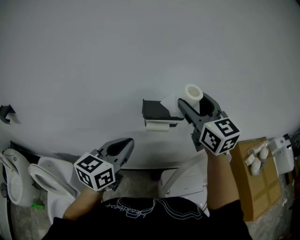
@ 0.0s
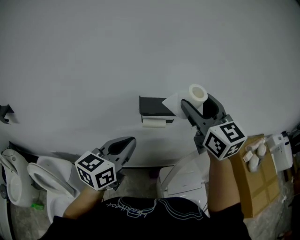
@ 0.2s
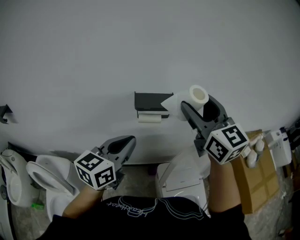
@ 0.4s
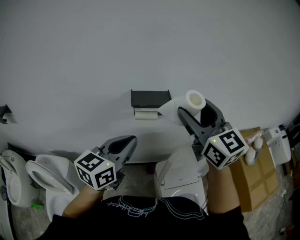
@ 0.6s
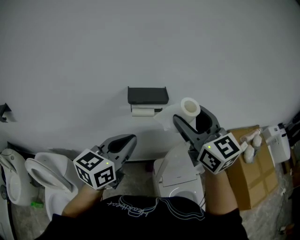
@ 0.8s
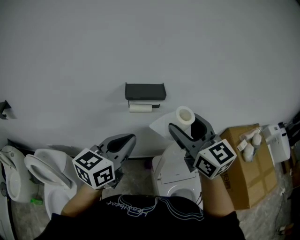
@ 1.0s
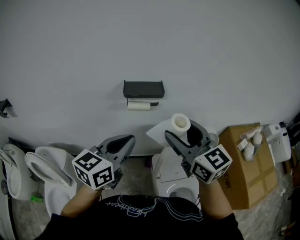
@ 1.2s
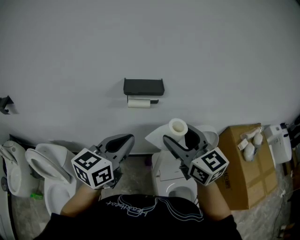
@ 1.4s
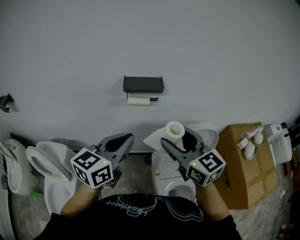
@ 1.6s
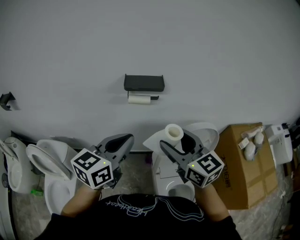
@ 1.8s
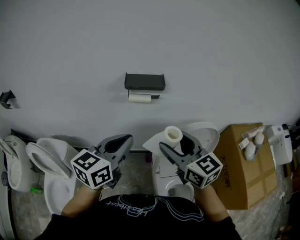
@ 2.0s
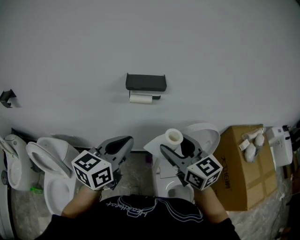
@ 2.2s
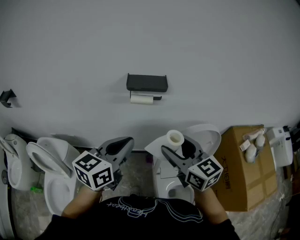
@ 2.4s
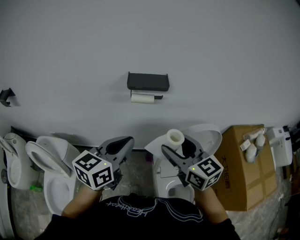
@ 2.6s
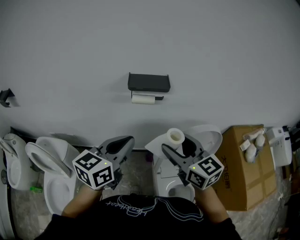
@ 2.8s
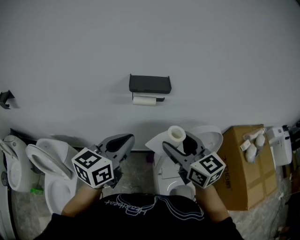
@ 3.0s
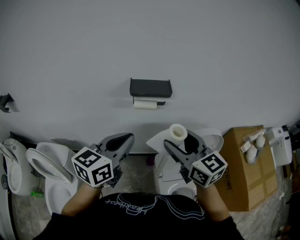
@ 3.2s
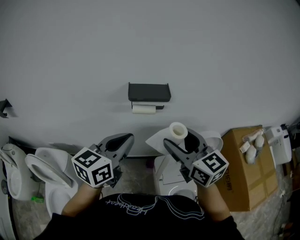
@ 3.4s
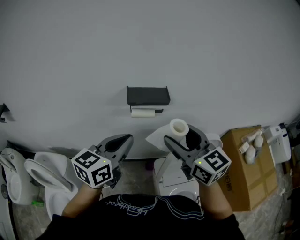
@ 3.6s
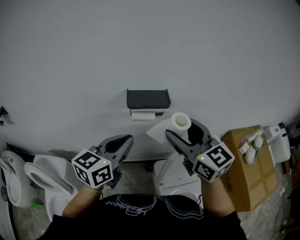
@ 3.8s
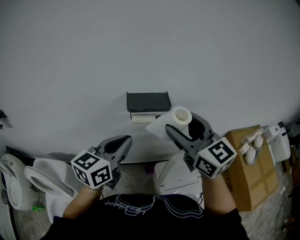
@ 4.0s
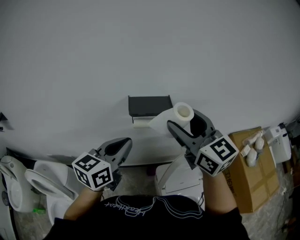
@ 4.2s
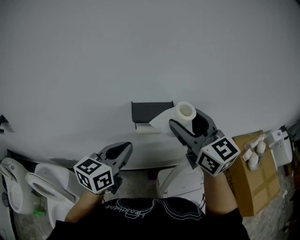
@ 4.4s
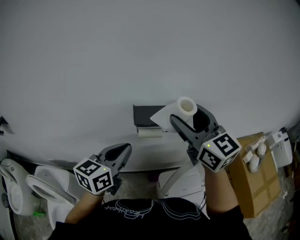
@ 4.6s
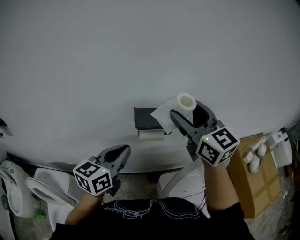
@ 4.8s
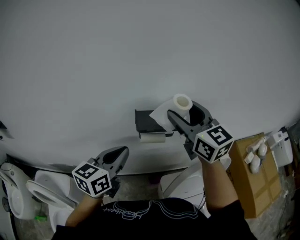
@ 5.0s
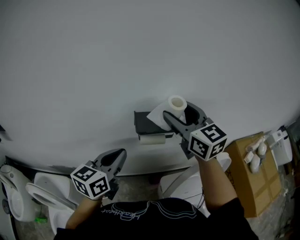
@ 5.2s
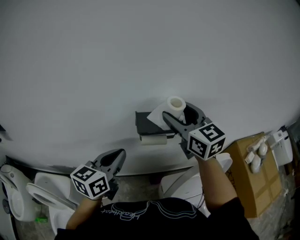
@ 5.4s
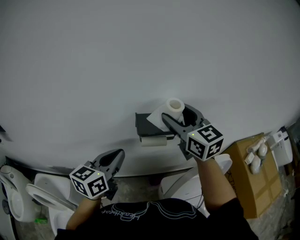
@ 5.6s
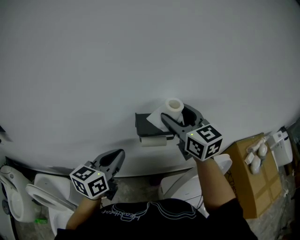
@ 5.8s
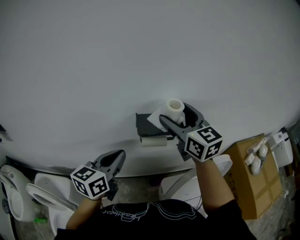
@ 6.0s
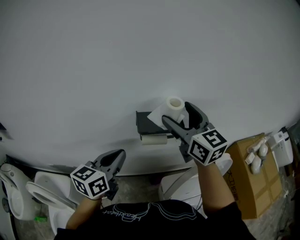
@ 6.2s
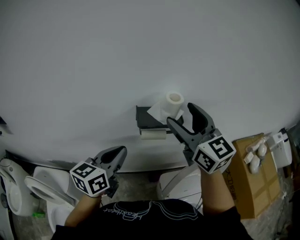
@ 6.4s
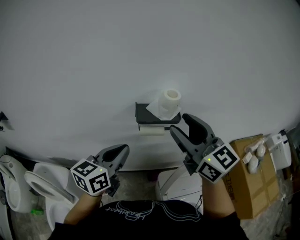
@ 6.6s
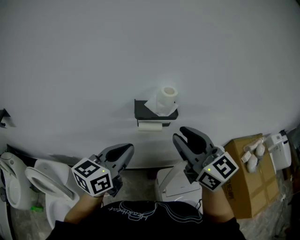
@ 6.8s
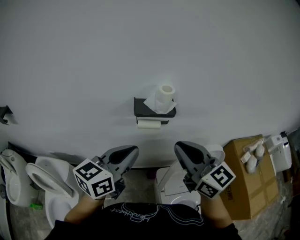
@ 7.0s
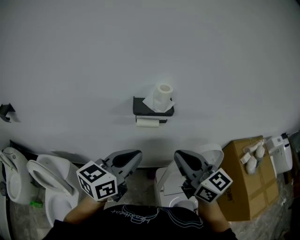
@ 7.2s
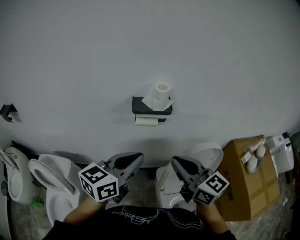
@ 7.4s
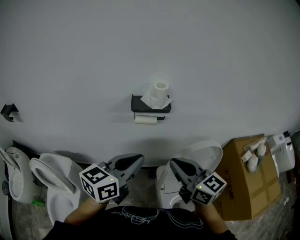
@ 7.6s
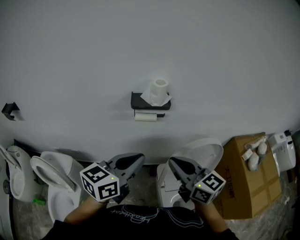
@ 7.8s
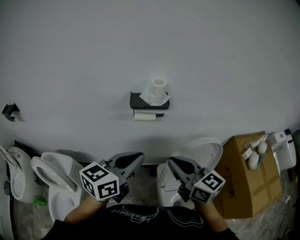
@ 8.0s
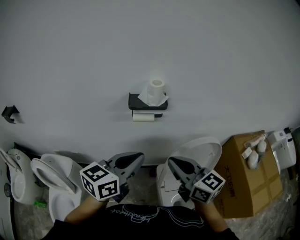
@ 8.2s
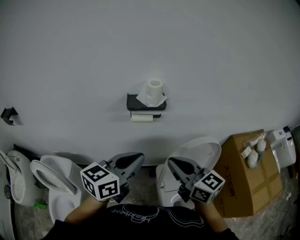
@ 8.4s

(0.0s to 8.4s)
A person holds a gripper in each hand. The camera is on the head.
0.0s - 1.4s: The right gripper is displaced backward and downward by about 20 cm. The left gripper heads to the right and backward, covering about 10 cm.
1.4s - 2.8s: The right gripper travels downward by approximately 5 cm.
2.8s - 4.2s: The right gripper goes some 15 cm forward and upward; the left gripper travels forward by about 10 cm.
4.2s - 5.6s: The right gripper travels forward by roughly 10 cm, while the left gripper goes some 5 cm to the left.
5.6s - 7.0s: The left gripper travels backward, to the right and upward by about 15 cm, while the right gripper heads backward, covering about 20 cm, and closes its fingers.
7.0s - 8.4s: The left gripper travels to the right and backward by about 10 cm, while the right gripper is displaced downward and backward by roughly 10 cm.

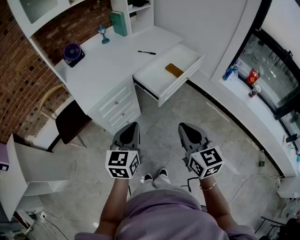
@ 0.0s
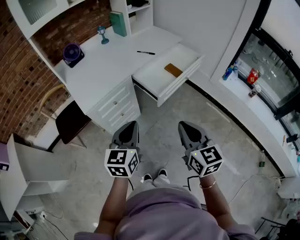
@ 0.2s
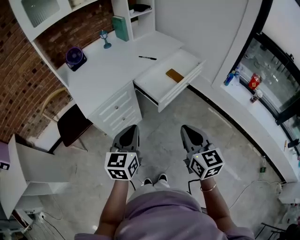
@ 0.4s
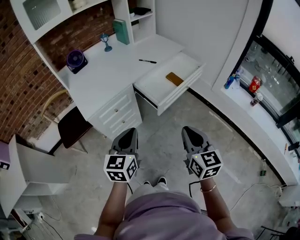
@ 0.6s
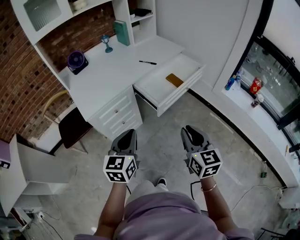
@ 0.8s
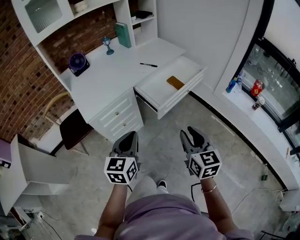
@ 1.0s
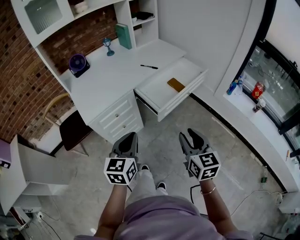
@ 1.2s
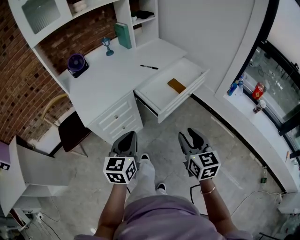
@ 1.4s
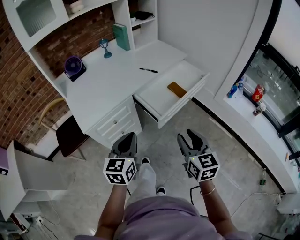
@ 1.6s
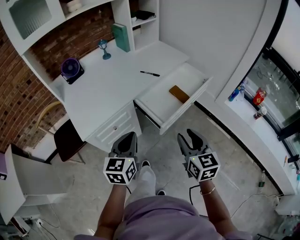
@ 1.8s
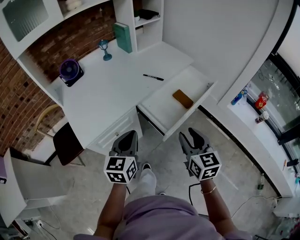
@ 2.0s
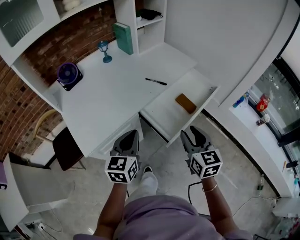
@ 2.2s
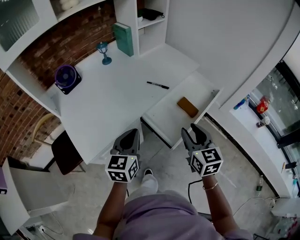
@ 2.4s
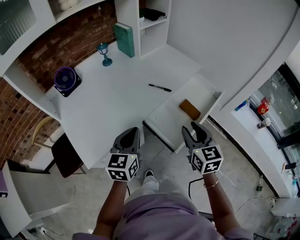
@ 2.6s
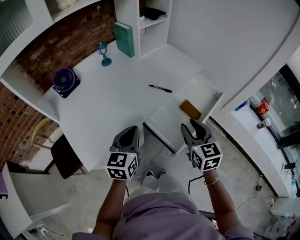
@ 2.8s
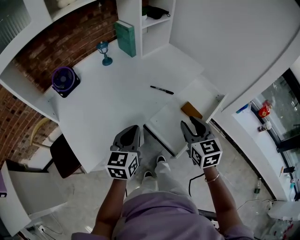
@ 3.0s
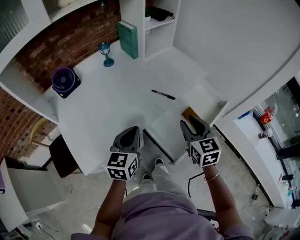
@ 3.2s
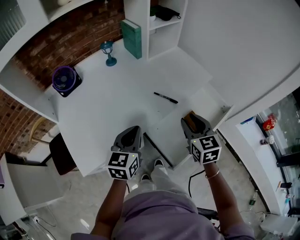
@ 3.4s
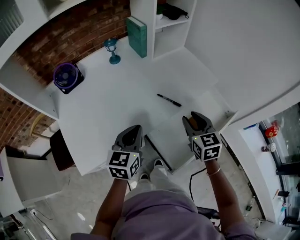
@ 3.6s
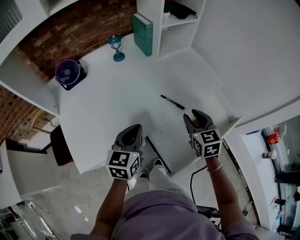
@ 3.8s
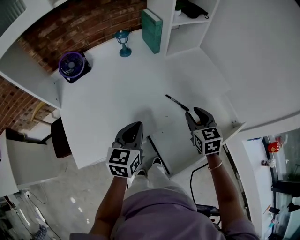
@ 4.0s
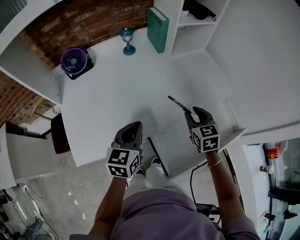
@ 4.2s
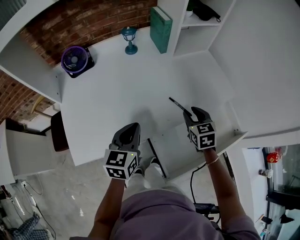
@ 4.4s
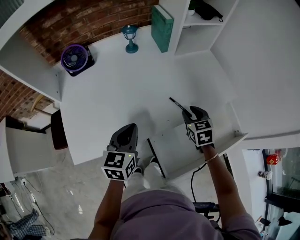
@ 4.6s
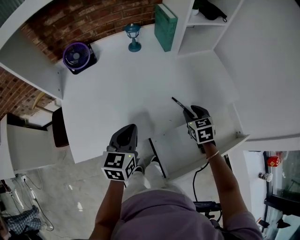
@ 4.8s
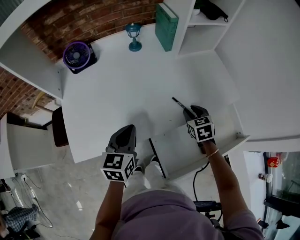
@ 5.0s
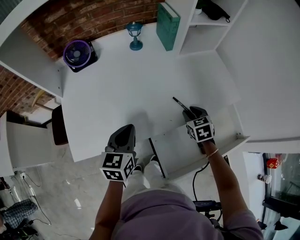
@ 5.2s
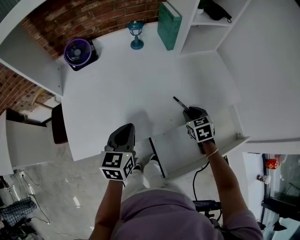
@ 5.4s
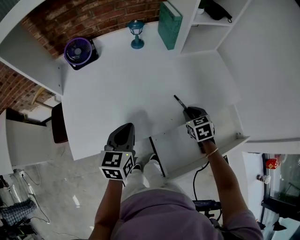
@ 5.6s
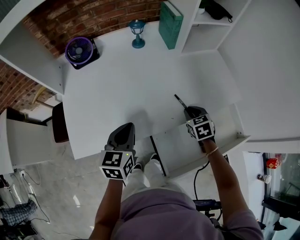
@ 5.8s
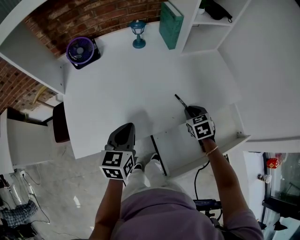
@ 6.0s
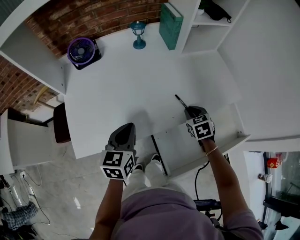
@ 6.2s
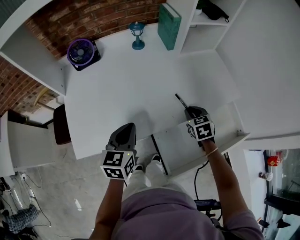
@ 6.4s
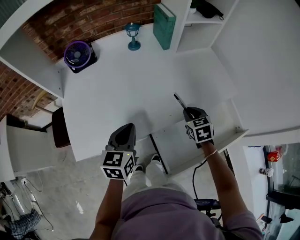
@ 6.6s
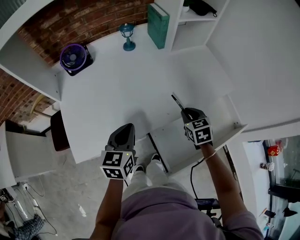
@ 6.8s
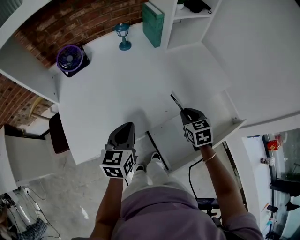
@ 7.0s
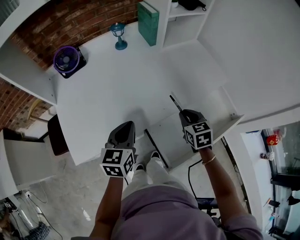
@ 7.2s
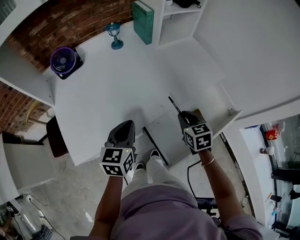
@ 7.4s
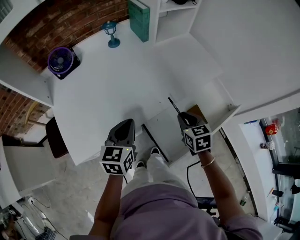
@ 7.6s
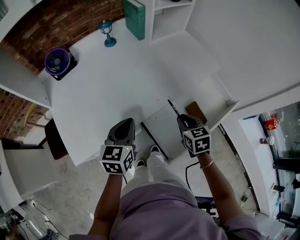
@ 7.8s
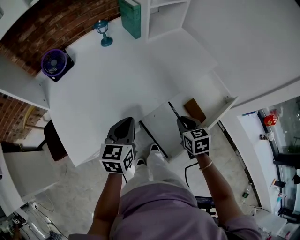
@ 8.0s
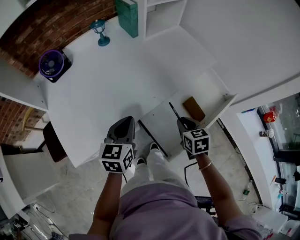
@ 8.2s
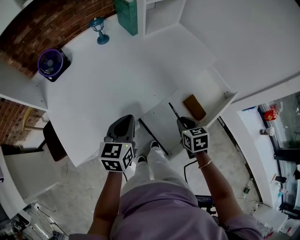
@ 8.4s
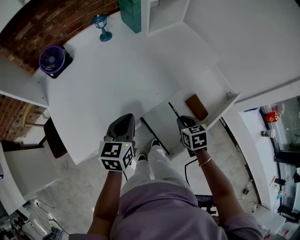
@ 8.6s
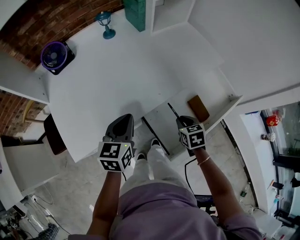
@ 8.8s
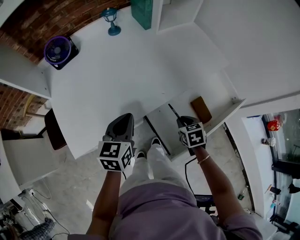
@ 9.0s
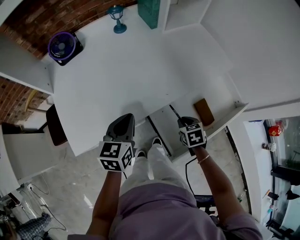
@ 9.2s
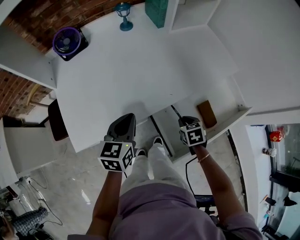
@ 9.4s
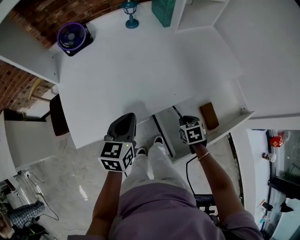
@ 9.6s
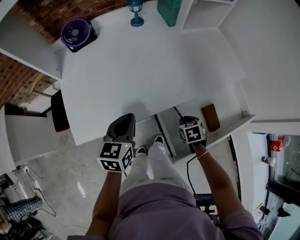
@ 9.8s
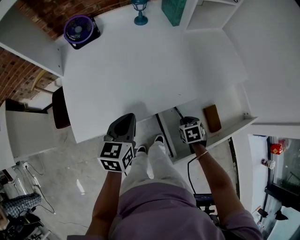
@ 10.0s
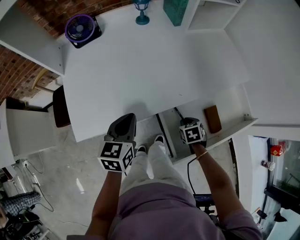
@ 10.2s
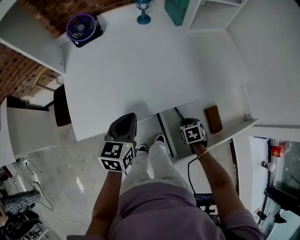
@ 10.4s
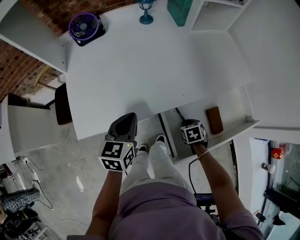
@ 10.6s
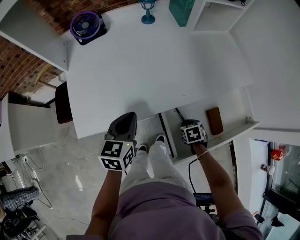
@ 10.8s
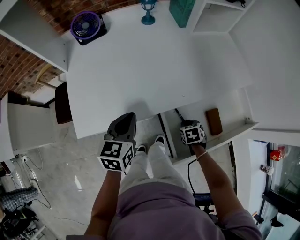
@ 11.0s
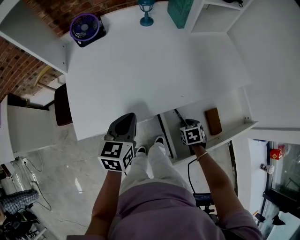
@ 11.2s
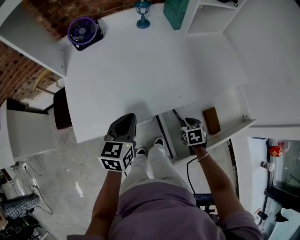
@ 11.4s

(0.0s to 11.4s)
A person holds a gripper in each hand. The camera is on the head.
0.0s - 1.4s: The left gripper moves roughly 5 cm, while the right gripper heads forward and to the right, covering approximately 10 cm, and opens up.
1.4s - 2.8s: Both grippers move forward, about 30 cm.
2.8s - 4.2s: The left gripper heads forward, covering roughly 10 cm. Meanwhile the right gripper is displaced forward by some 25 cm, and swivels about 20 degrees.
4.2s - 5.6s: The right gripper goes some 10 cm downward.
5.6s - 7.2s: The right gripper moves backward and upward, about 10 cm.
7.2s - 8.6s: The right gripper travels backward and downward by approximately 10 cm.
8.6s - 10.0s: The right gripper heads downward, covering some 10 cm, and changes its angle by some 20 degrees. The left gripper heads to the left, covering approximately 5 cm.
10.0s - 11.4s: The grippers move only a little.

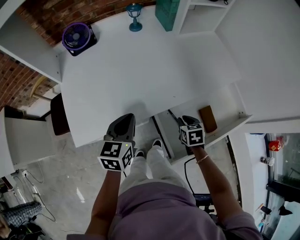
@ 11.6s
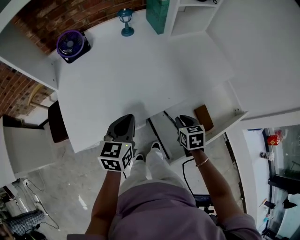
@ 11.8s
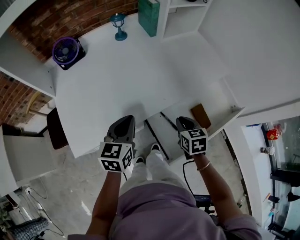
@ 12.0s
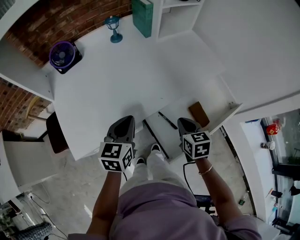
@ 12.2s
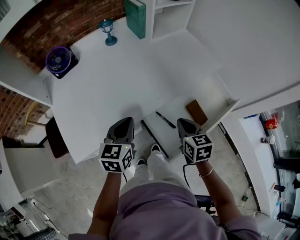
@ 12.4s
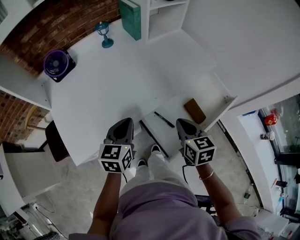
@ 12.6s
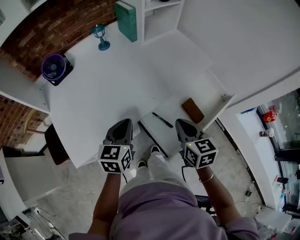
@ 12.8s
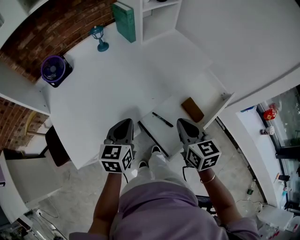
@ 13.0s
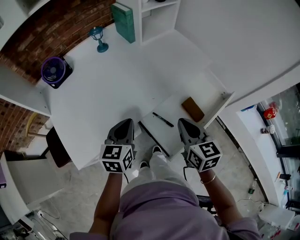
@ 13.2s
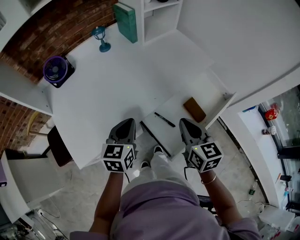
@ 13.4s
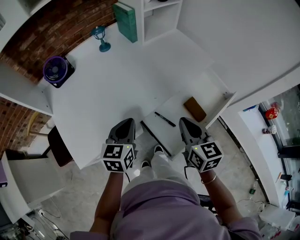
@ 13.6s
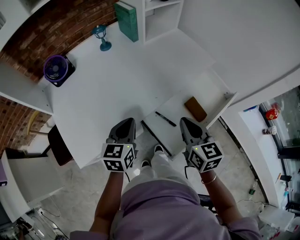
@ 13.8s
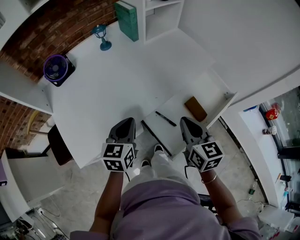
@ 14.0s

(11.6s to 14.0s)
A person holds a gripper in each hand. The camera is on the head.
11.6s - 12.8s: The left gripper moves to the right, approximately 5 cm; the right gripper is displaced upward by roughly 15 cm, and rotates about 30 degrees.
12.8s - 14.0s: The grippers move only a little.

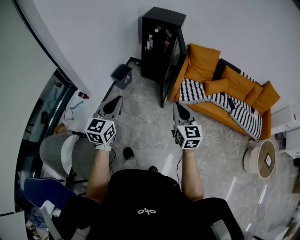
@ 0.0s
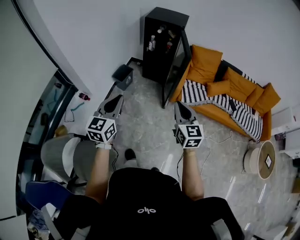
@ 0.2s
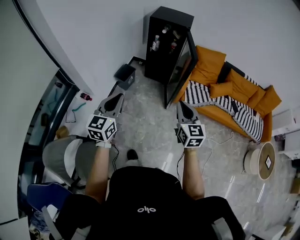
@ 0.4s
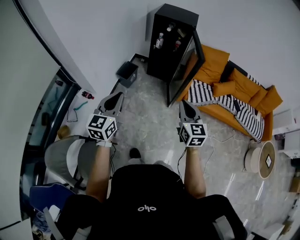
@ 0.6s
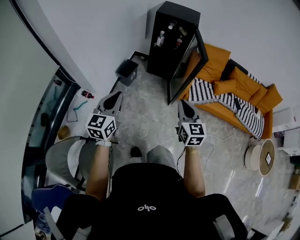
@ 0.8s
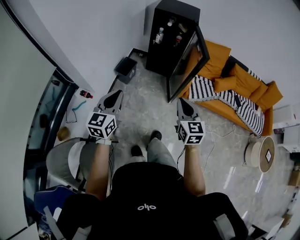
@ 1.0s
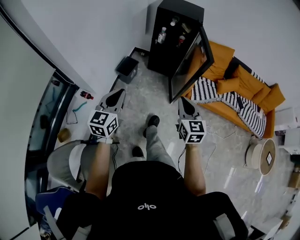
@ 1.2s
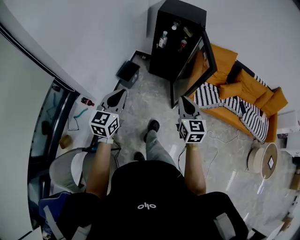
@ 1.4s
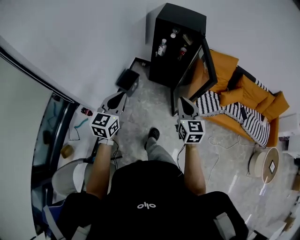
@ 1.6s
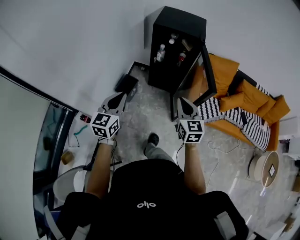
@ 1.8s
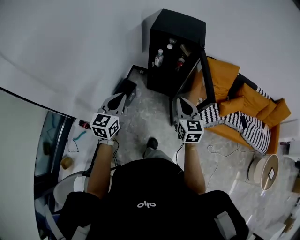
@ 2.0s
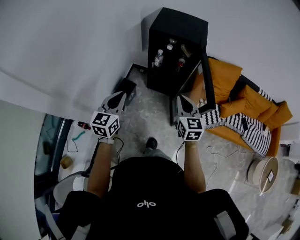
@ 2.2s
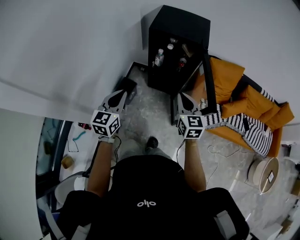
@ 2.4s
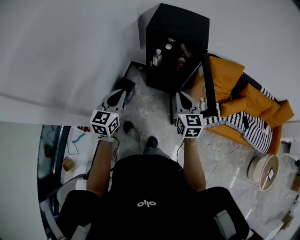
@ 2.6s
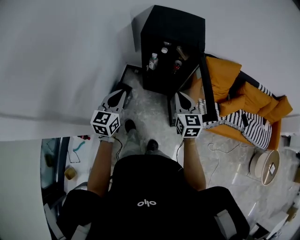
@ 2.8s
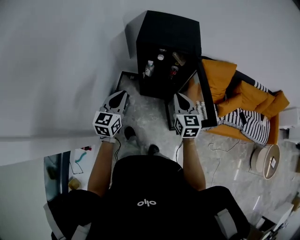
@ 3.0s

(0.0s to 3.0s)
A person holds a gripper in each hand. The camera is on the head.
0.0s - 1.6s: Both grippers move forward and to the left, approximately 35 cm.
1.6s - 3.0s: Both grippers move forward, about 35 cm.
